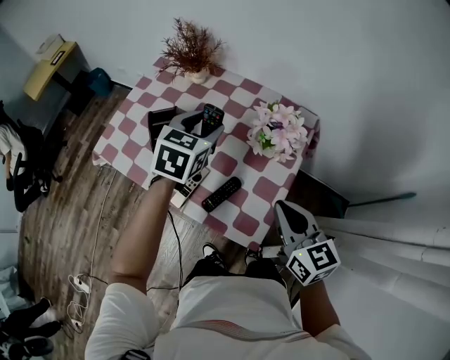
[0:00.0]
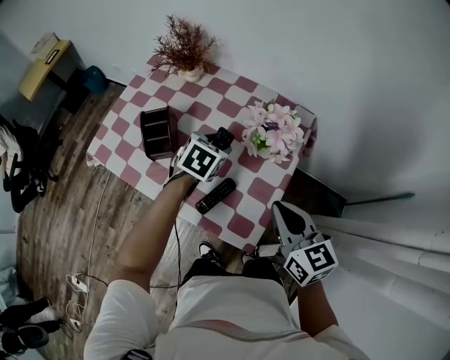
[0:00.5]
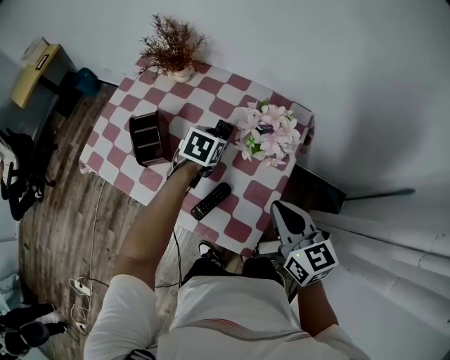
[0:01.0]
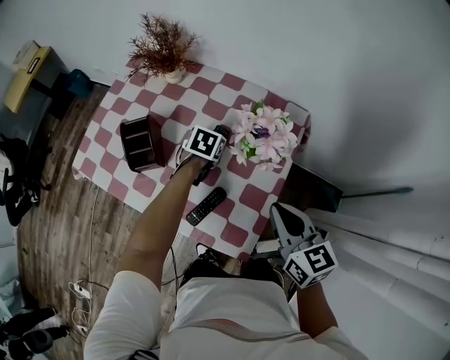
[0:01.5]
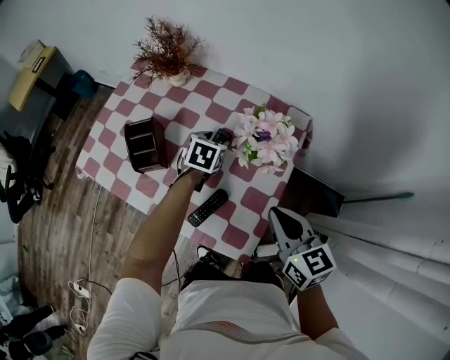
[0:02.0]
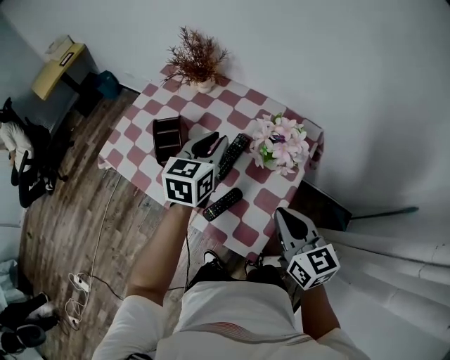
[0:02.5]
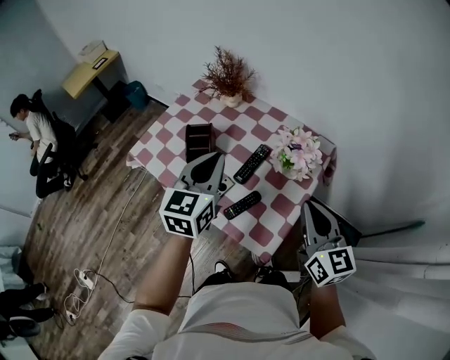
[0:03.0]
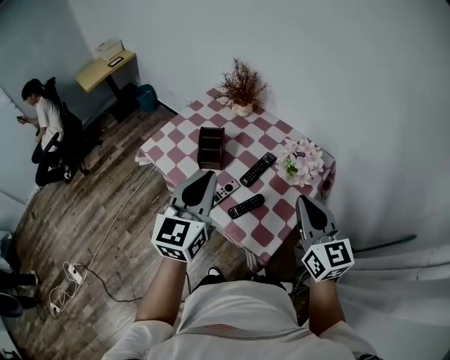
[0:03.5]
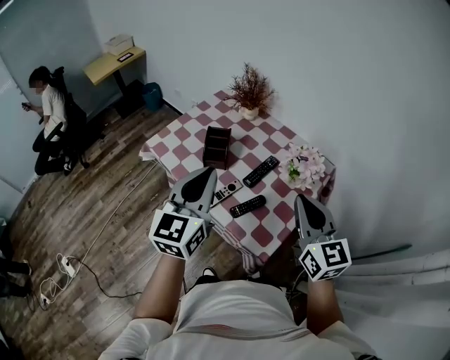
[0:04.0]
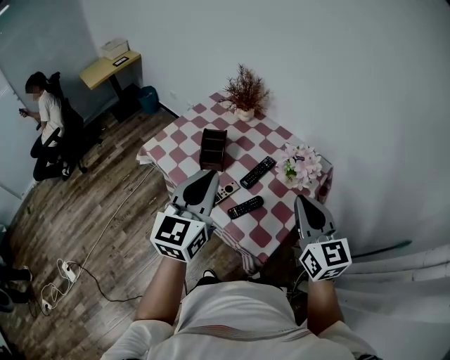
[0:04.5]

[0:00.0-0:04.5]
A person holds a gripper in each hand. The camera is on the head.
0:00.0 to 0:02.0: The right gripper moves some 5 cm. The left gripper goes approximately 20 cm downward.
0:02.0 to 0:04.5: The left gripper heads upward, backward and to the left, covering about 50 cm, points its fingers some 50 degrees further upward, and closes, while the right gripper travels upward by about 15 cm, and changes its angle by approximately 30 degrees.

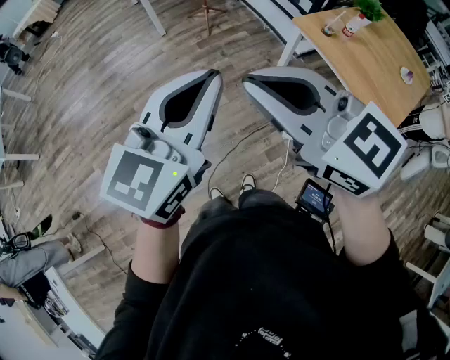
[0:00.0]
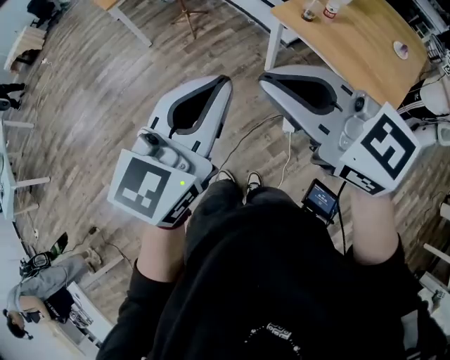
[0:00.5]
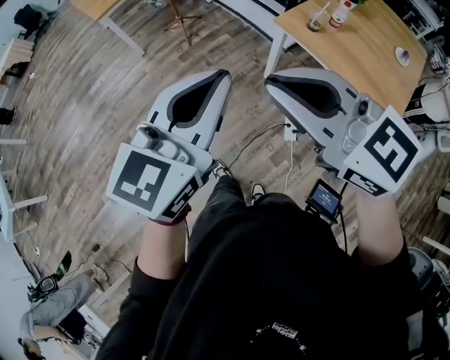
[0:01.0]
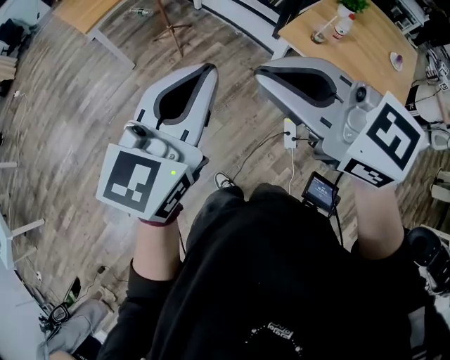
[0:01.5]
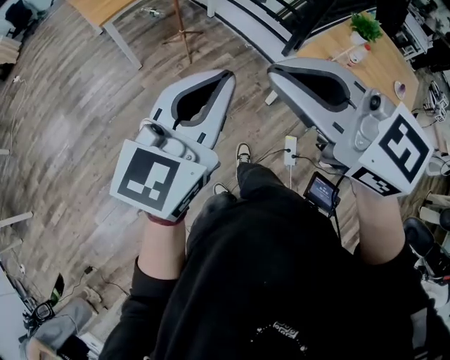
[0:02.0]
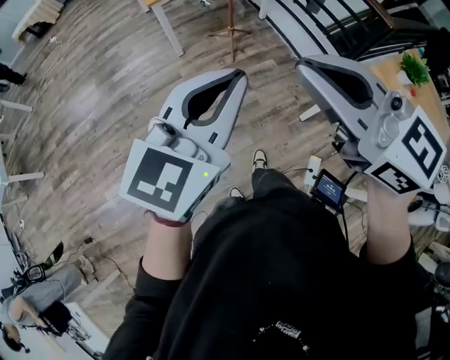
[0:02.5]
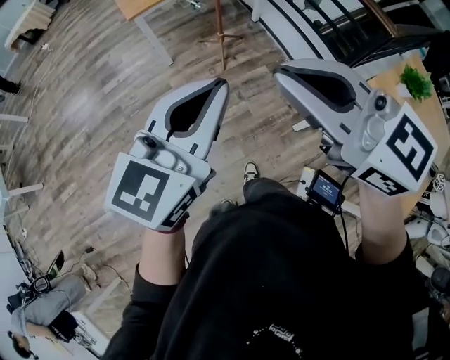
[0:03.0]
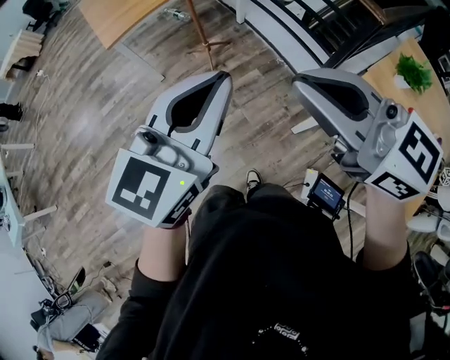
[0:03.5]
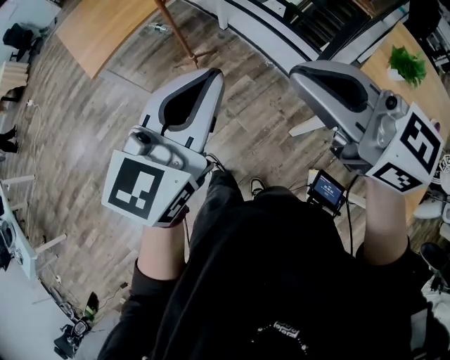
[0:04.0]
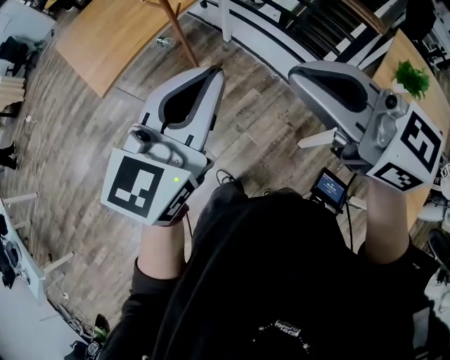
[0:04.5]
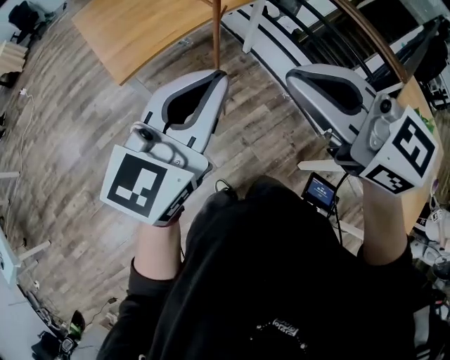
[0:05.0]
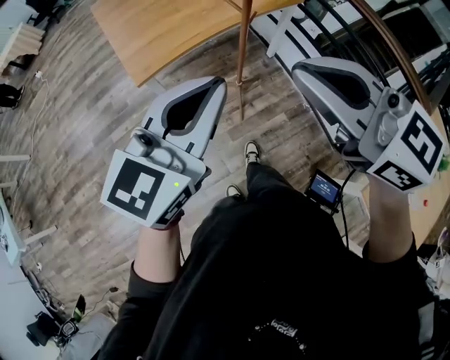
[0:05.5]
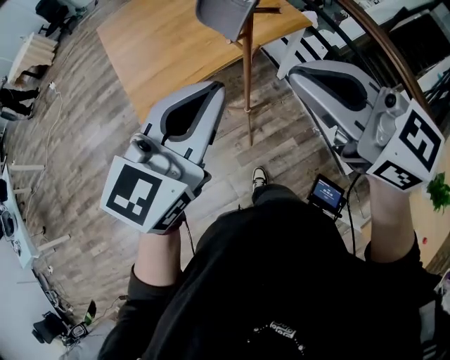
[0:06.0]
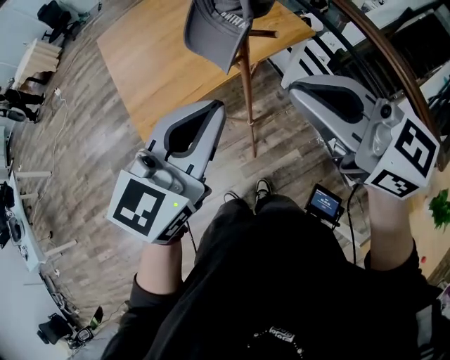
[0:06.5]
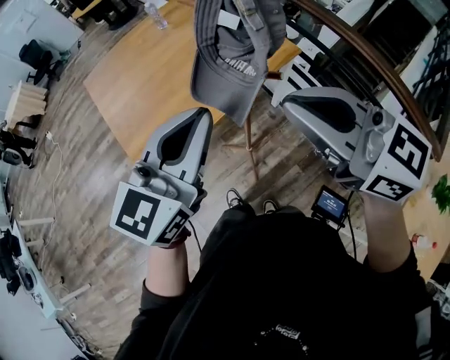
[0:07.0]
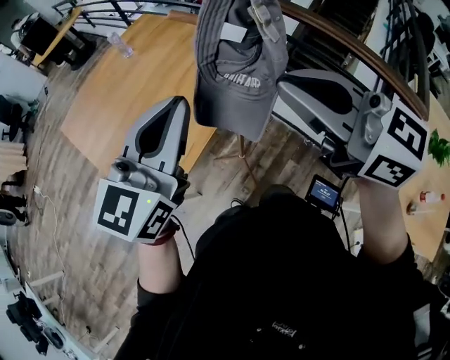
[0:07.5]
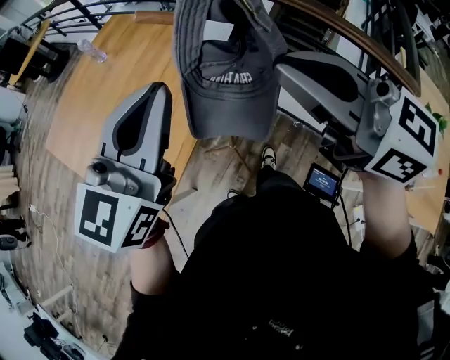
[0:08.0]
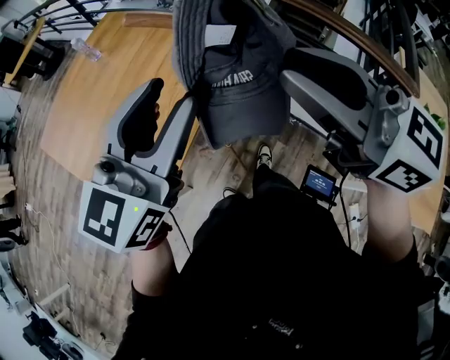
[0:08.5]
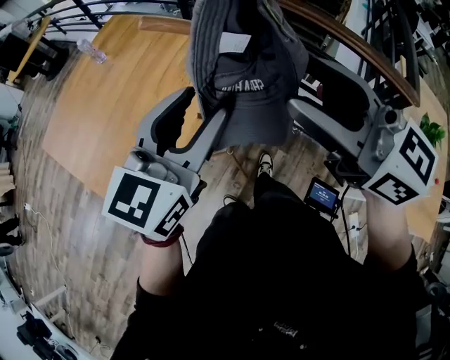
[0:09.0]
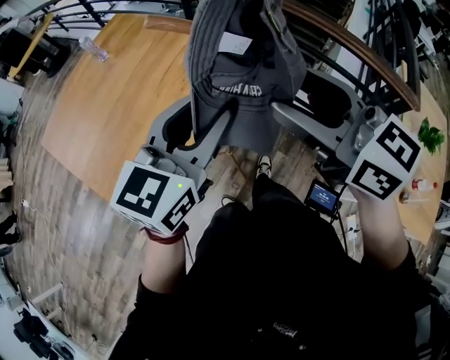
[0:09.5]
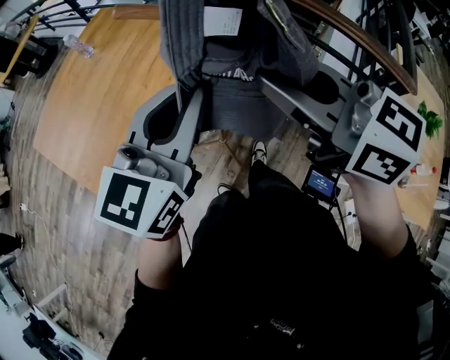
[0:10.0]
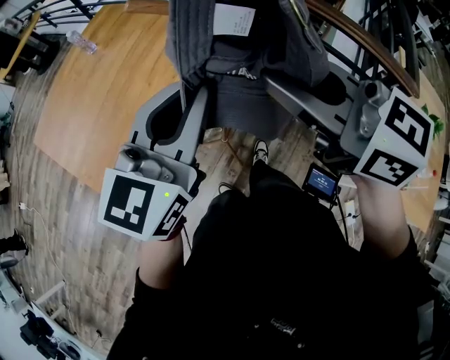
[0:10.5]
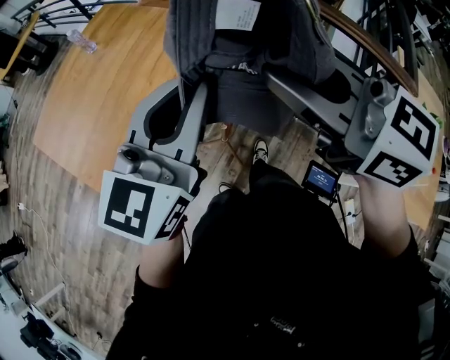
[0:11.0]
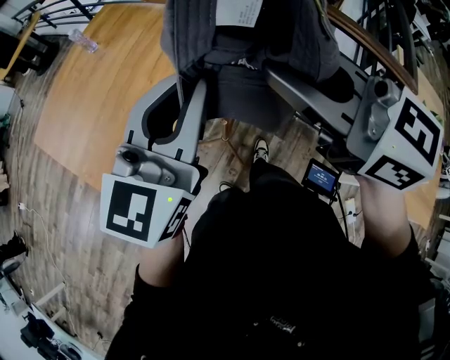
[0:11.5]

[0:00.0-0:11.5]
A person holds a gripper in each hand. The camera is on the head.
0:00.0 to 0:02.0: Both grippers move forward, about 25 cm.
0:02.0 to 0:04.0: The left gripper goes about 30 cm forward. The right gripper travels forward and to the right by approximately 30 cm.
0:04.0 to 0:06.0: Both grippers travel together forward and to the left, some 35 cm.
0:06.0 to 0:07.5: The grippers both shift forward by approximately 15 cm. The right gripper rotates approximately 20 degrees.
0:07.5 to 0:09.5: The right gripper opens. Meanwhile the left gripper heads to the right and downward, covering approximately 10 cm, and opens.
0:09.5 to 0:11.5: The right gripper moves about 5 cm, and closes up. The left gripper goes approximately 5 cm upward, and closes its fingers.

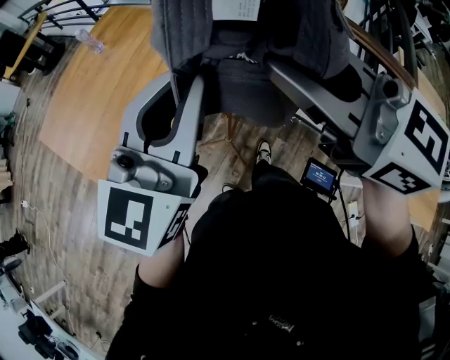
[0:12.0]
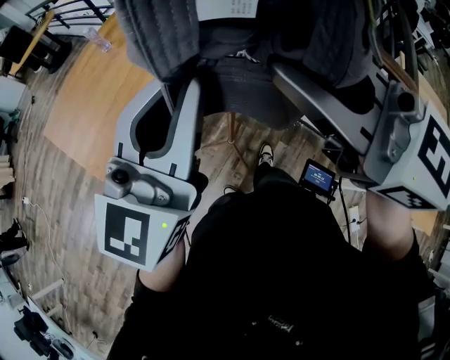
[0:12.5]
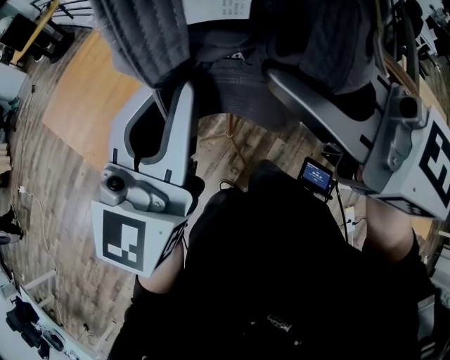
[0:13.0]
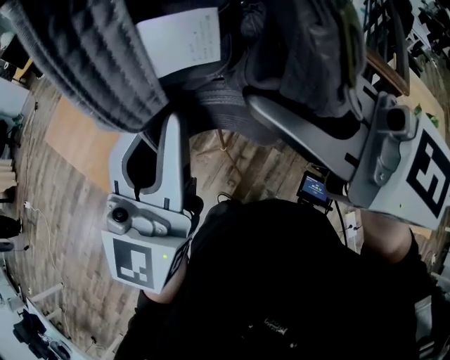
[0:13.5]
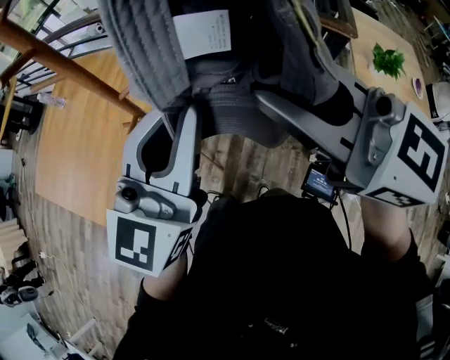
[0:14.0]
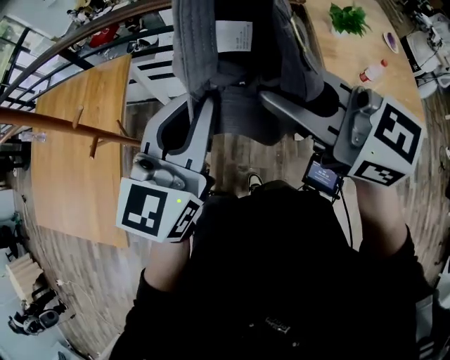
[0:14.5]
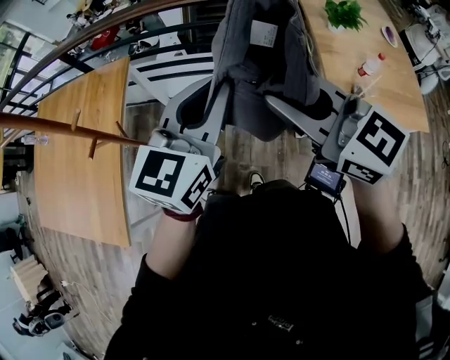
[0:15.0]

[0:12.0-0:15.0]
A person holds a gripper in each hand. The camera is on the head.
0:12.0 to 0:13.5: The grippers both shift backward by some 5 cm.
0:13.5 to 0:15.0: The right gripper ends up about 35 cm from where it was, and changes its angle by roughly 40 degrees; the left gripper changes place by approximately 35 cm, and turns by approximately 40 degrees.

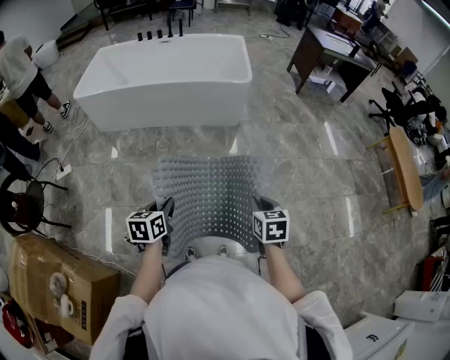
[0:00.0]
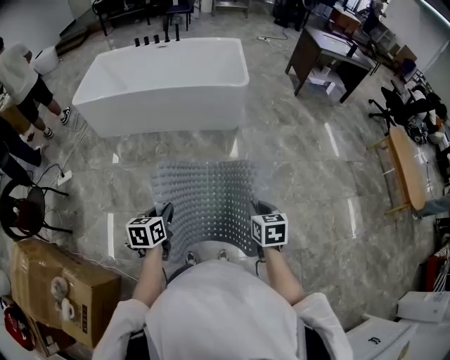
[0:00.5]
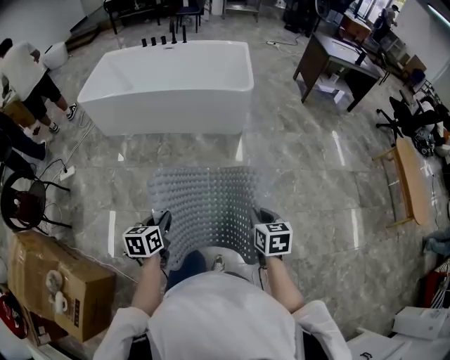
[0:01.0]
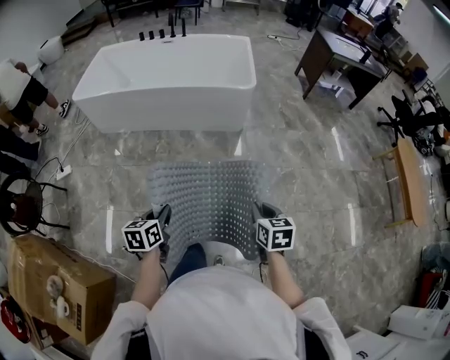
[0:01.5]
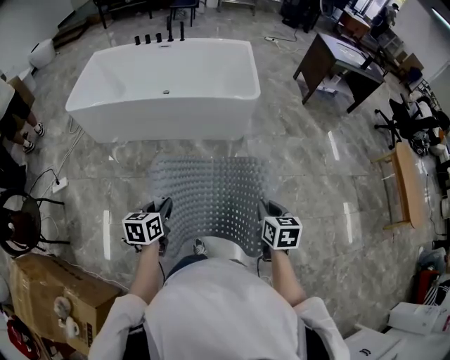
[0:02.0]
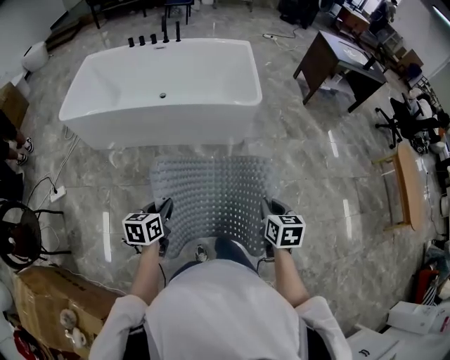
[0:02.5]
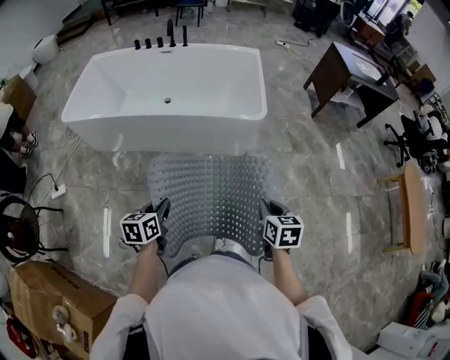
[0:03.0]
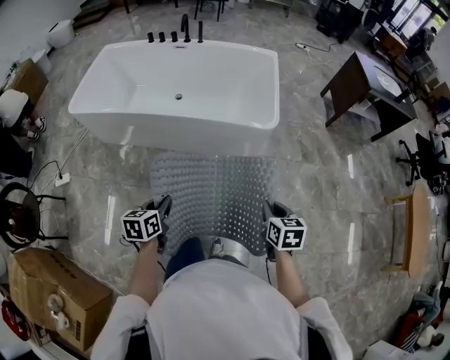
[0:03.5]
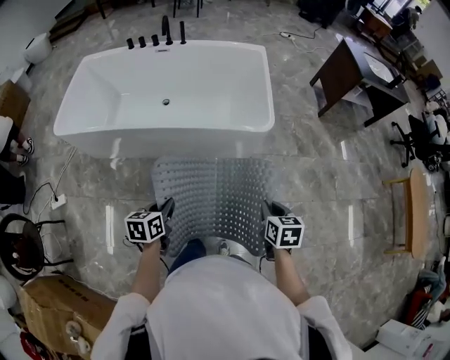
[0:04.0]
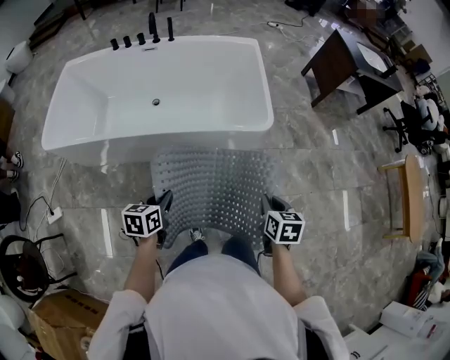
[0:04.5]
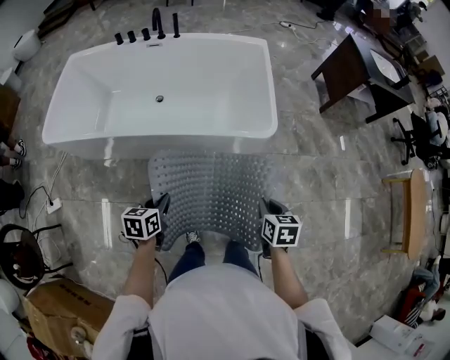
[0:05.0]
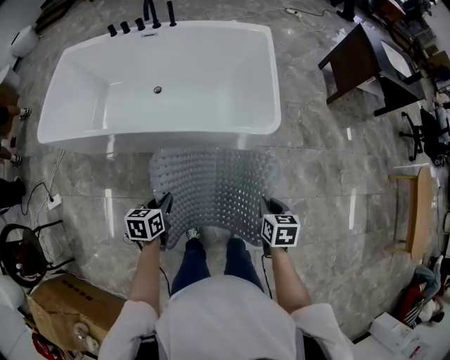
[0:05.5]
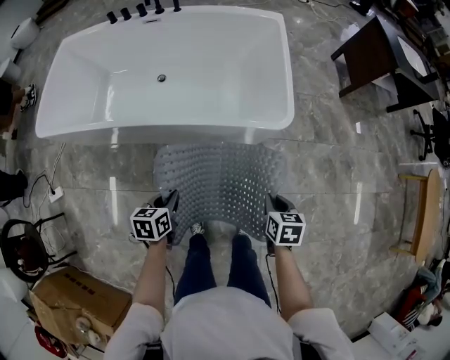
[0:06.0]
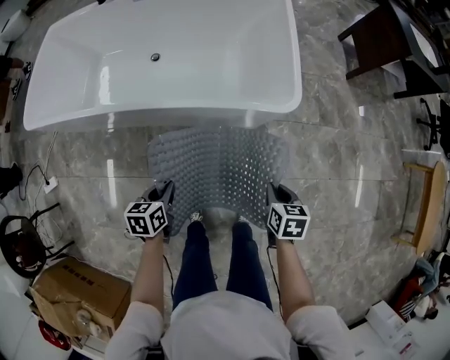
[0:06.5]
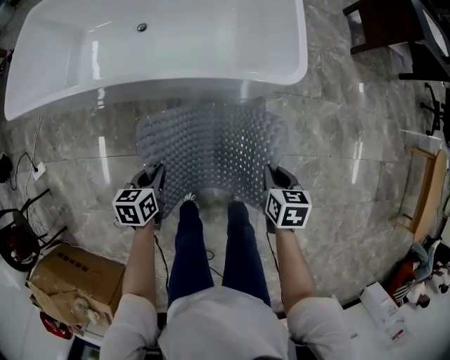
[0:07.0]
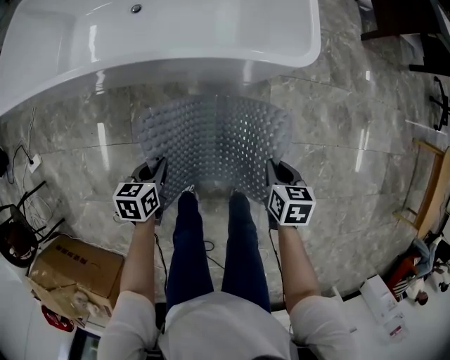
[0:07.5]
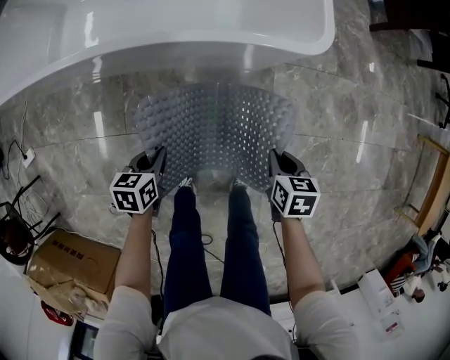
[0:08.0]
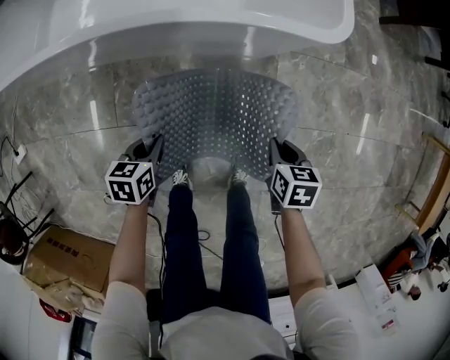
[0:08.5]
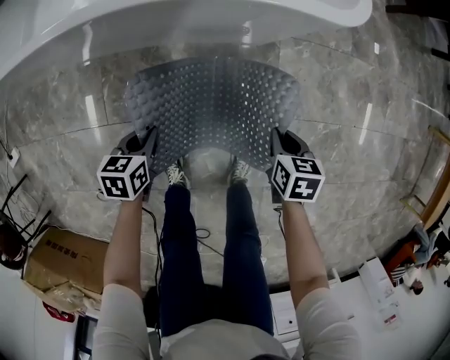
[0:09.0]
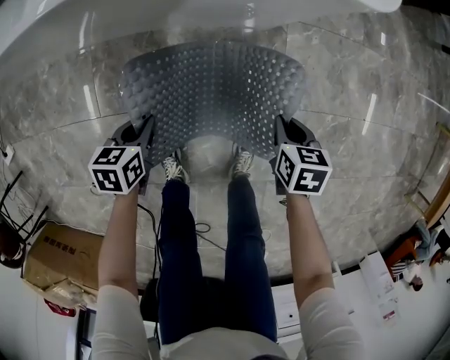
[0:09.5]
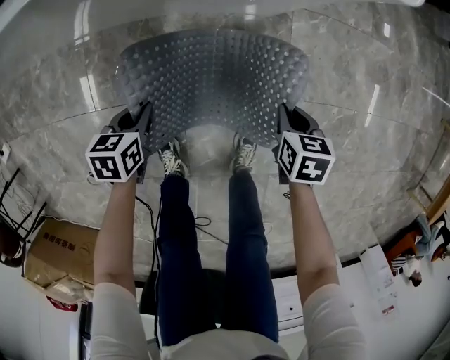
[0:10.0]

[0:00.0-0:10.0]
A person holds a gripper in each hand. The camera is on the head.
0:00.0 to 0:02.0: Both grippers move forward, approximately 20 cm.
0:02.0 to 0:04.0: Both grippers move forward, about 30 cm.
0:04.0 to 0:06.0: The grippers both shift forward and downward by some 20 cm.
0:06.0 to 0:08.0: Both grippers move downward, approximately 20 cm.
0:08.0 to 0:10.0: Both grippers move downward, approximately 20 cm.
